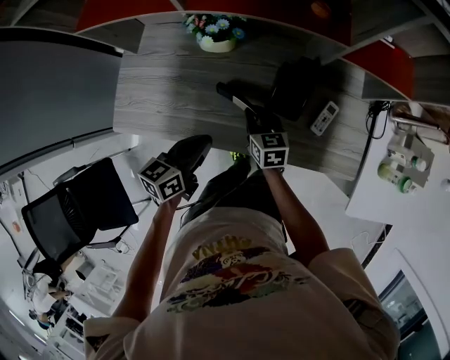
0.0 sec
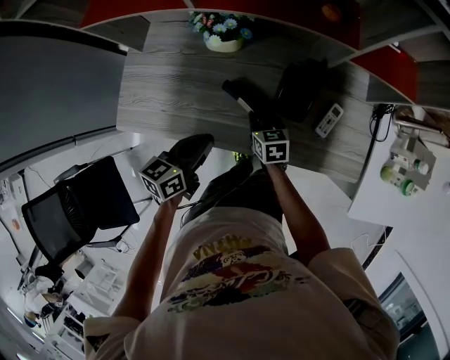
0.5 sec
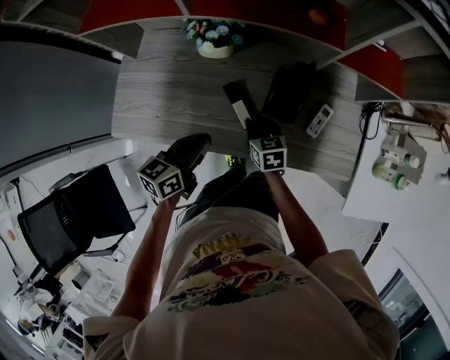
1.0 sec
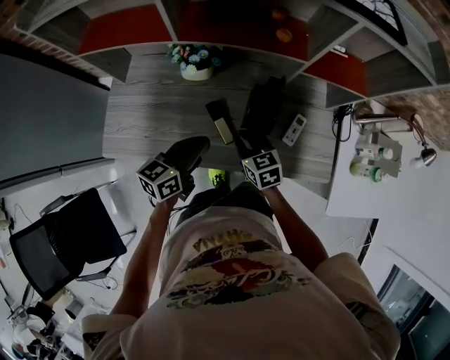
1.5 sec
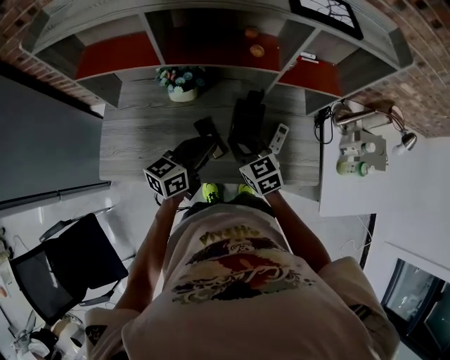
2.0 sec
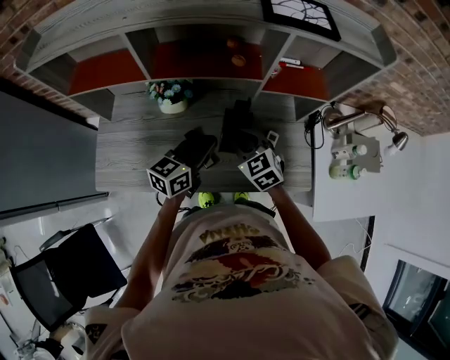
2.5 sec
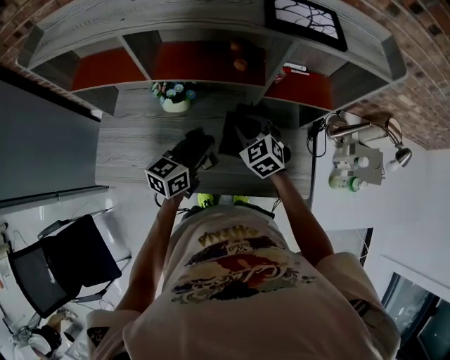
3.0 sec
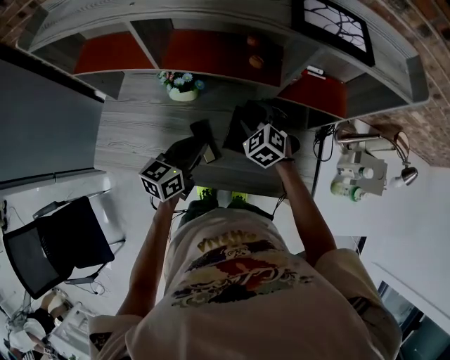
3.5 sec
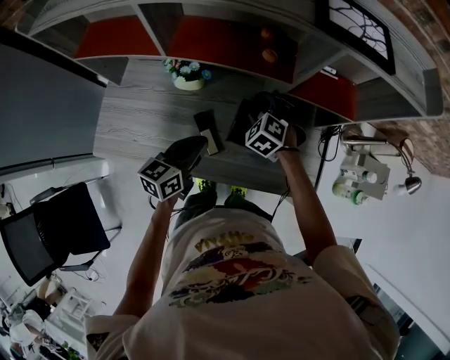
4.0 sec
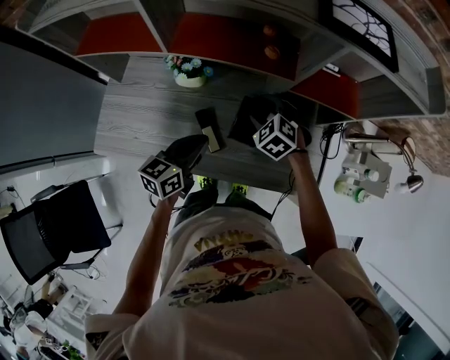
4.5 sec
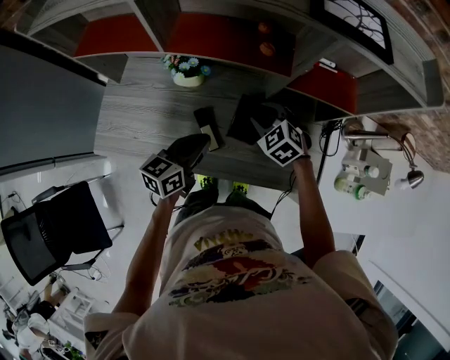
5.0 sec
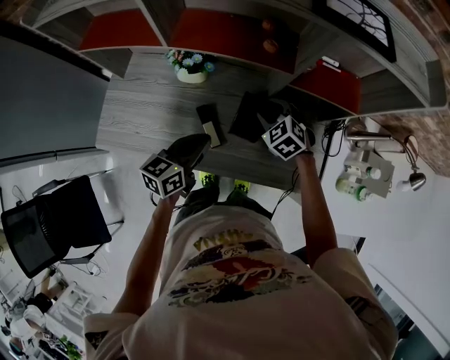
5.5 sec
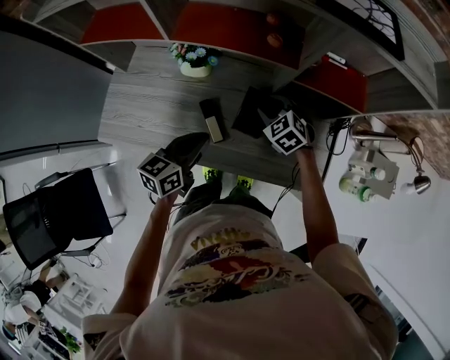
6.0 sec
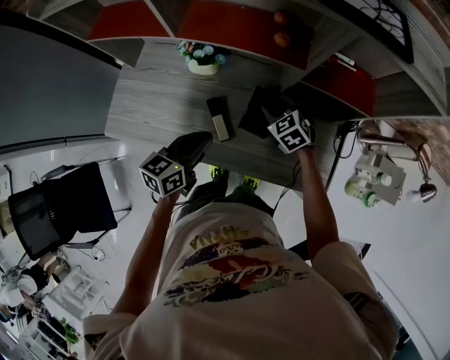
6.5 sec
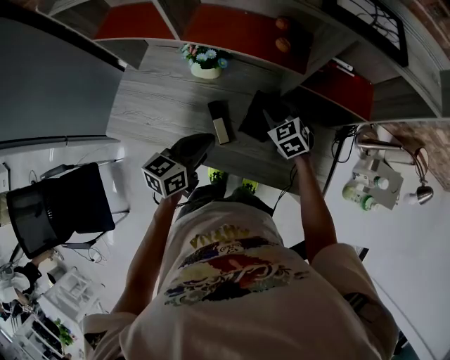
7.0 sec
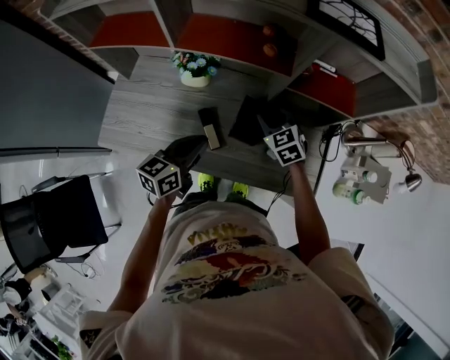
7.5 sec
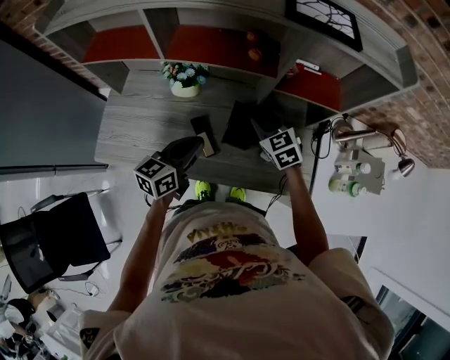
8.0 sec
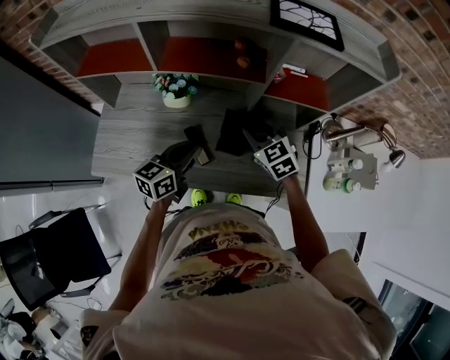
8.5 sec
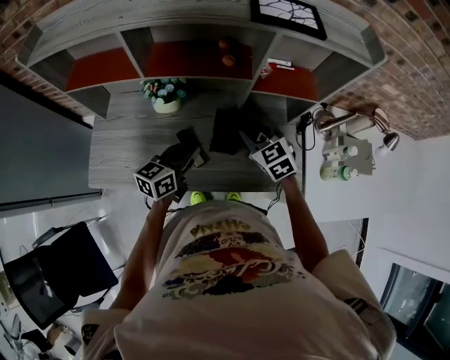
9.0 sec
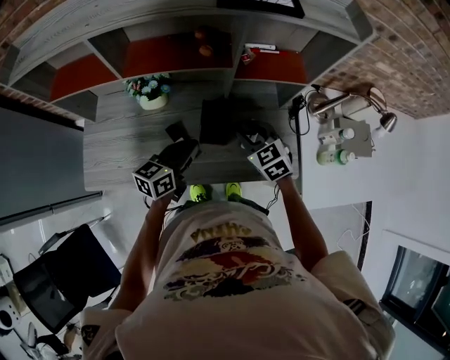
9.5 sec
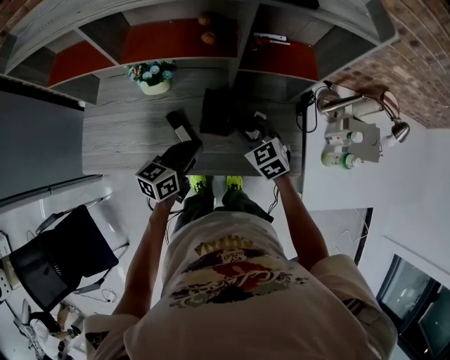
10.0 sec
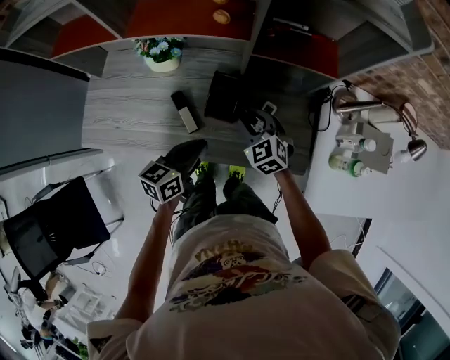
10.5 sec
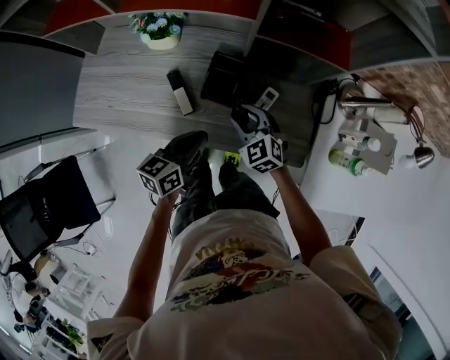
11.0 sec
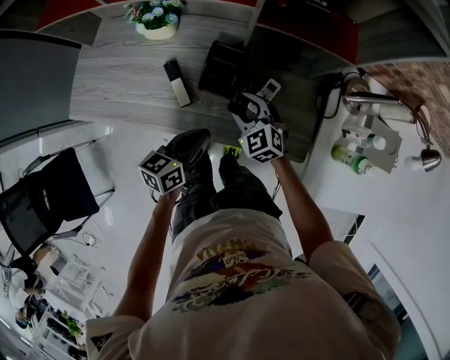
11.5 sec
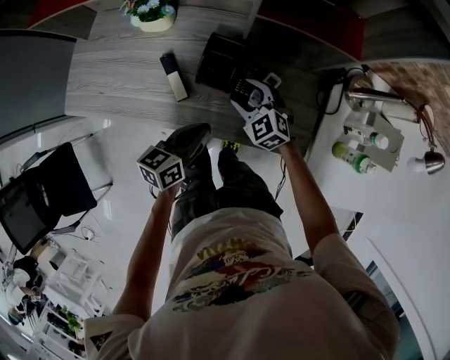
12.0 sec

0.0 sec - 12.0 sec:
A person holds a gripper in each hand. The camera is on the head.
0.0 sec - 2.0 sec: The left gripper is displaced upward, to the right and forward by roughly 15 cm, and swivels approximately 20 degrees. Meanwhile the right gripper moves upward, approximately 15 cm, and turns by approximately 20 degrees.
2.0 sec - 4.0 sec: The right gripper goes approximately 15 cm forward, rolls counterclockwise, seen from behind, by some 40 degrees, and opens.
4.0 sec - 6.0 sec: The grippers make only small movements.
6.0 sec - 8.0 sec: The right gripper moves upward, approximately 5 cm.
8.0 sec - 10.0 sec: The left gripper heads to the right, covering some 10 cm. Meanwhile the right gripper travels backward by roughly 5 cm.
10.0 sec - 12.0 sec: The left gripper heads downward and backward, covering some 10 cm. Meanwhile the right gripper travels downward by approximately 10 cm, changes its angle by some 20 degrees, and opens its fingers.

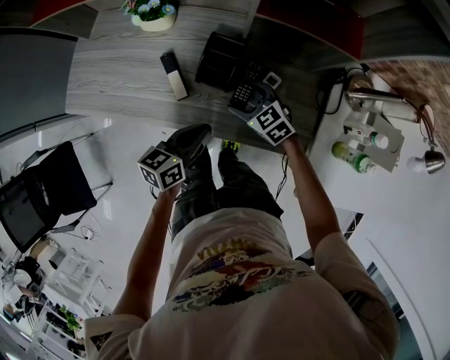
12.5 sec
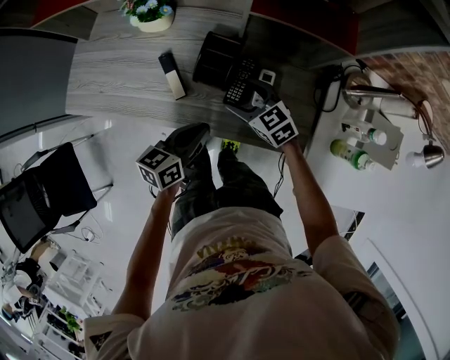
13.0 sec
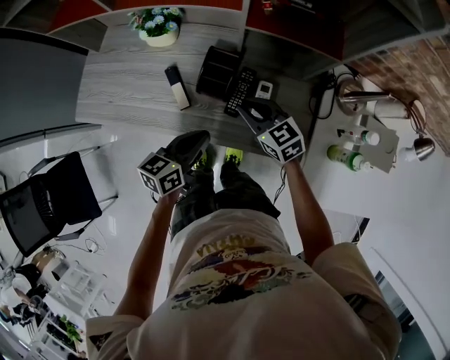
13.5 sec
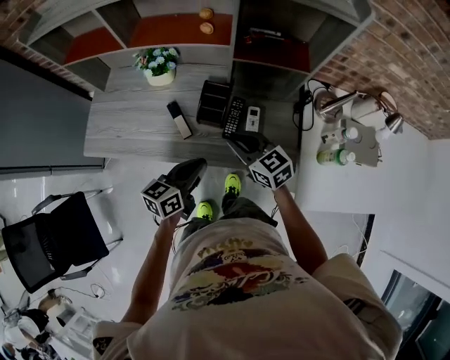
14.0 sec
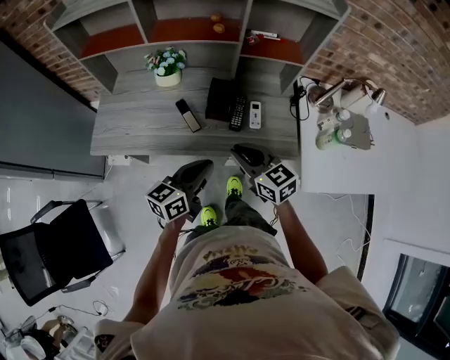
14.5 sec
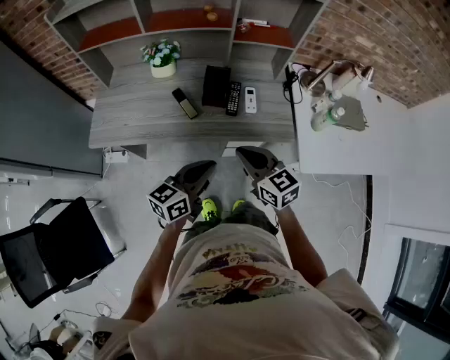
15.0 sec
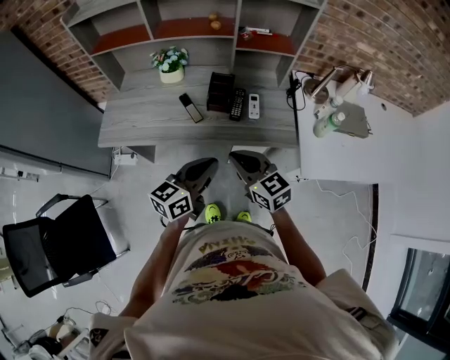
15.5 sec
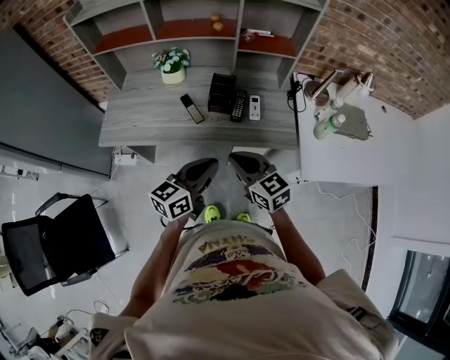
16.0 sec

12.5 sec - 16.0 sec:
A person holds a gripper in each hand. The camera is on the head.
12.5 sec - 14.5 sec: The right gripper shifts some 25 cm upward and backward, turns by approximately 30 degrees, and closes, while the left gripper is displaced upward, backward and to the left by roughly 15 cm, and changes its angle by roughly 20 degrees.
14.5 sec - 16.0 sec: The grippers both shift backward by approximately 10 cm.

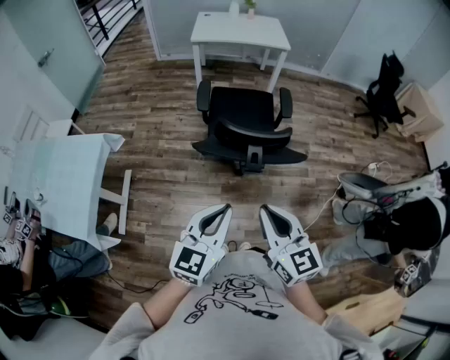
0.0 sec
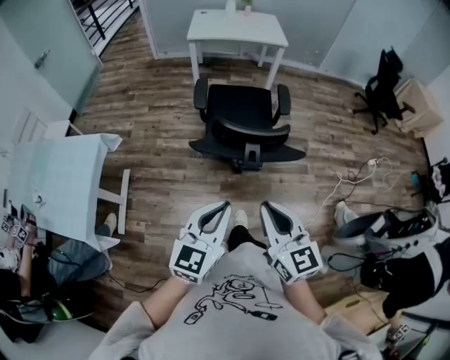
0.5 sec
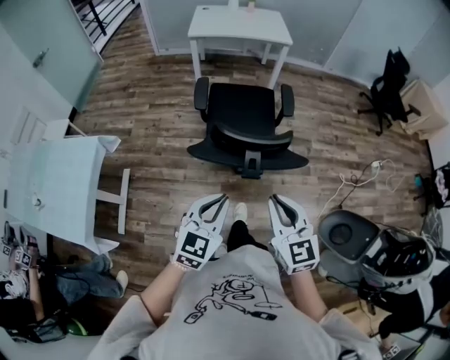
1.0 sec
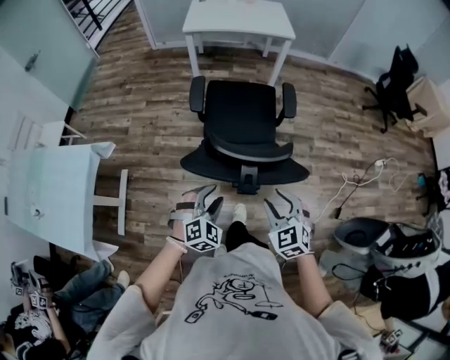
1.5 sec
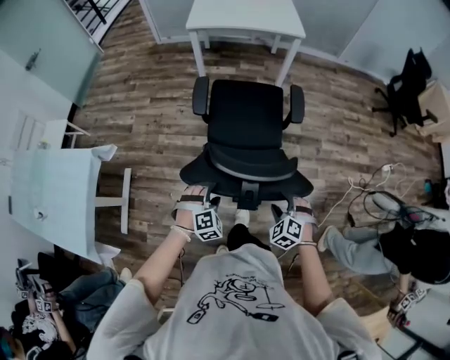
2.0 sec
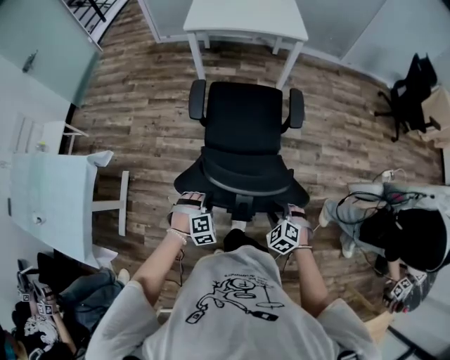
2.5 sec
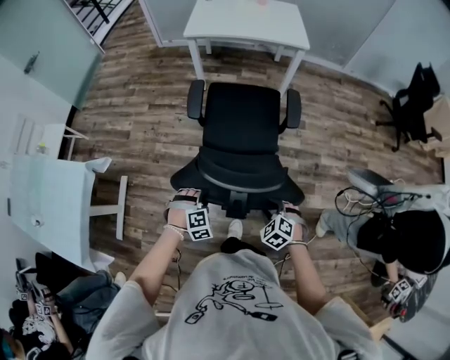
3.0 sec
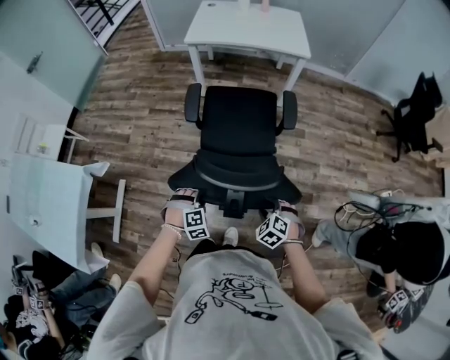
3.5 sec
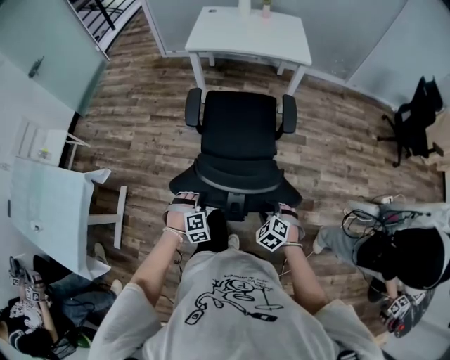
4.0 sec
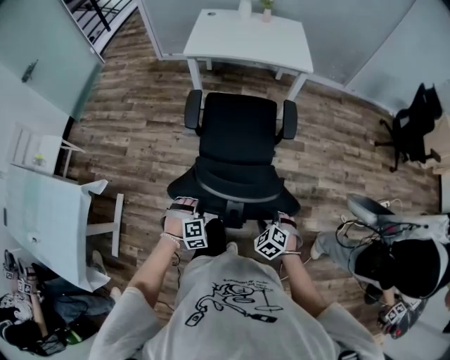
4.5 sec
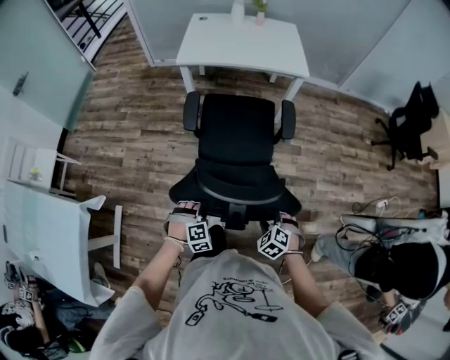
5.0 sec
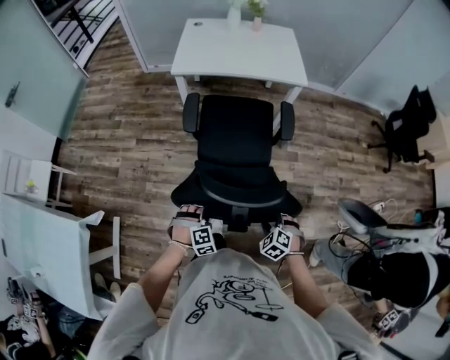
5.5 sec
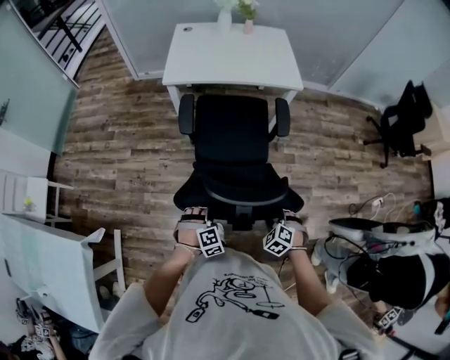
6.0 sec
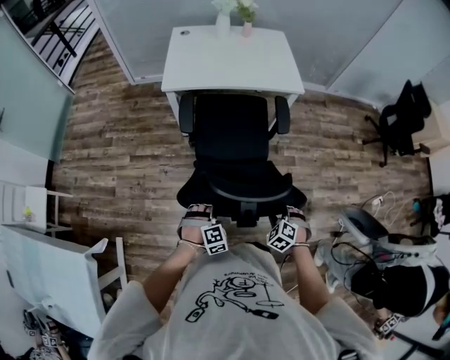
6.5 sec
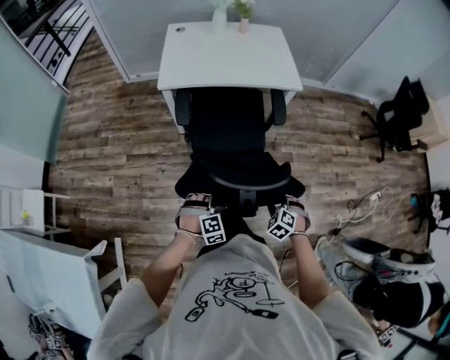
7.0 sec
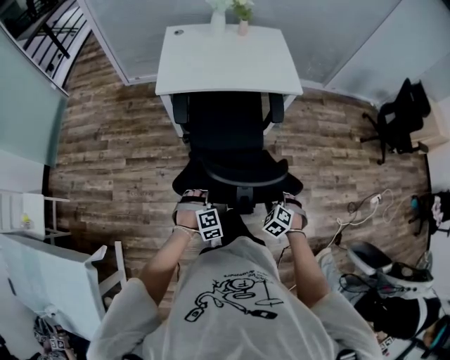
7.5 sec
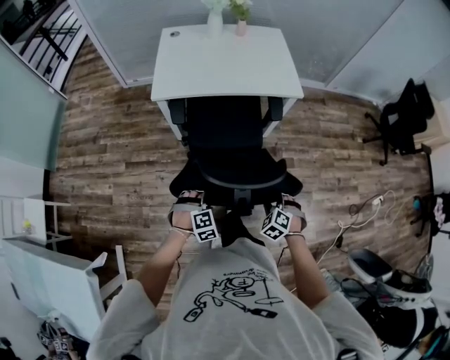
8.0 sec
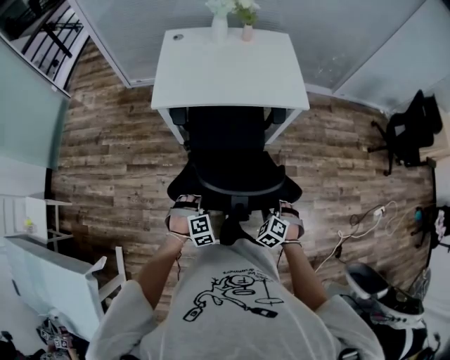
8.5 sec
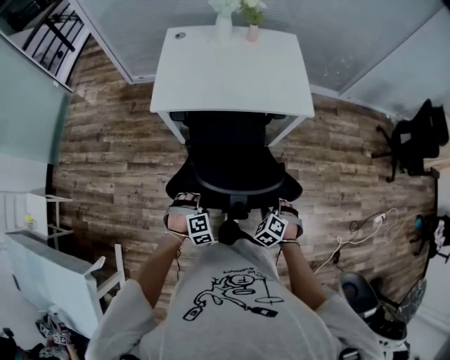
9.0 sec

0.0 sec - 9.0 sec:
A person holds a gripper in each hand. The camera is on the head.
0.0 sec - 2.0 sec: The left gripper shifts approximately 35 cm downward and forward, tilts its fingers about 40 degrees downward, and opens its fingers; the right gripper shifts approximately 40 cm downward, forward and to the right, angles its fingers downward, by roughly 40 degrees, and opens.
2.0 sec - 4.5 sec: The two grippers go about 20 cm forward. The left gripper closes.
4.5 sec - 7.0 sec: Both grippers travel together forward, some 25 cm.
7.0 sec - 9.0 sec: Both grippers move forward, about 15 cm.

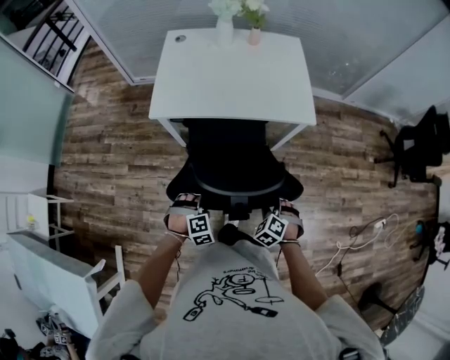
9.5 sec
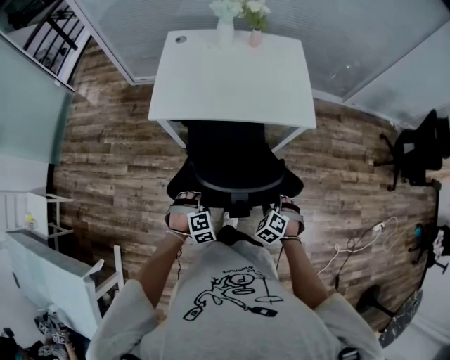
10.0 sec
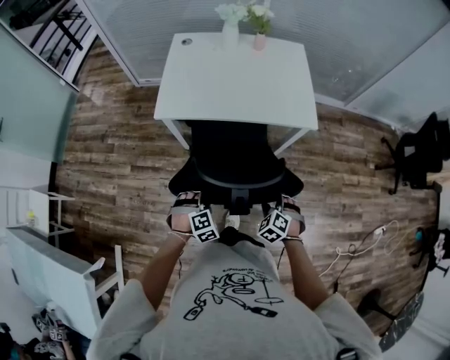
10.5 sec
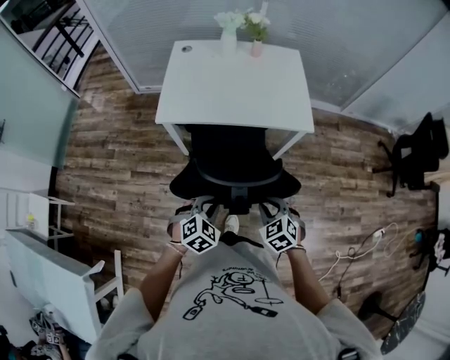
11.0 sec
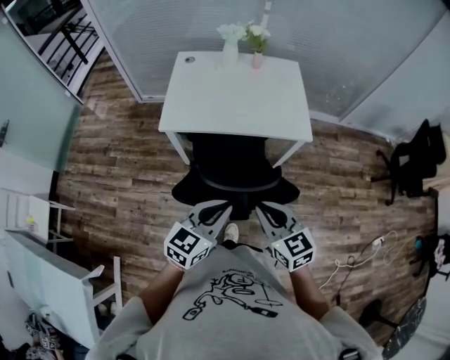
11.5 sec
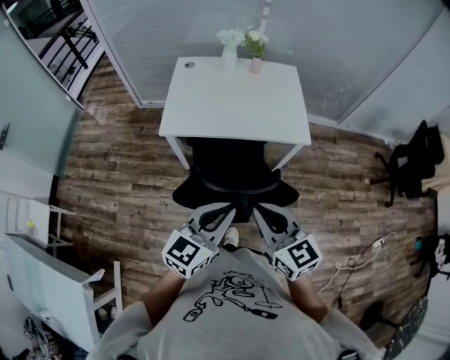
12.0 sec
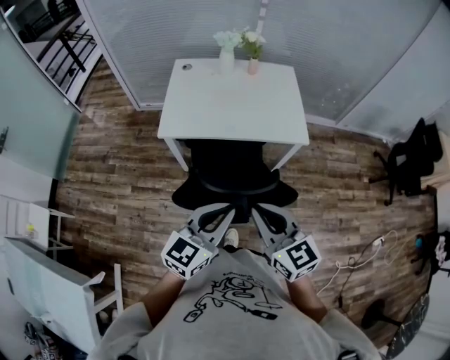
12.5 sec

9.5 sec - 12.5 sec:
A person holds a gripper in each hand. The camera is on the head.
9.5 sec - 11.0 sec: Both grippers move upward, roughly 10 cm. The left gripper swivels roughly 30 degrees, and closes its fingers; the right gripper rotates roughly 20 degrees, and closes up.
11.0 sec - 12.5 sec: Both grippers travel together upward, approximately 20 cm. The right gripper tips its fingers upward by some 40 degrees. The left gripper tips its fingers upward by some 40 degrees.
